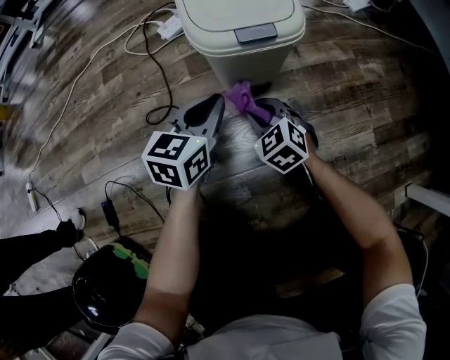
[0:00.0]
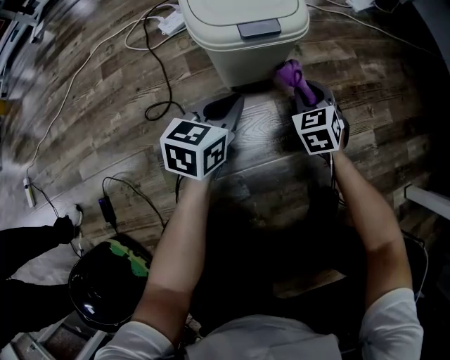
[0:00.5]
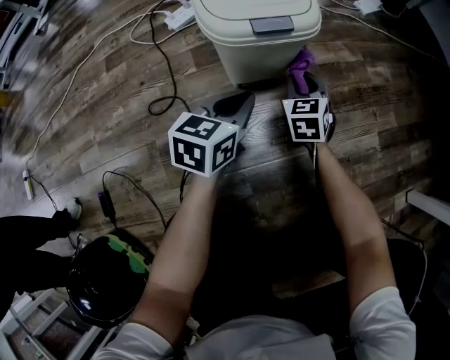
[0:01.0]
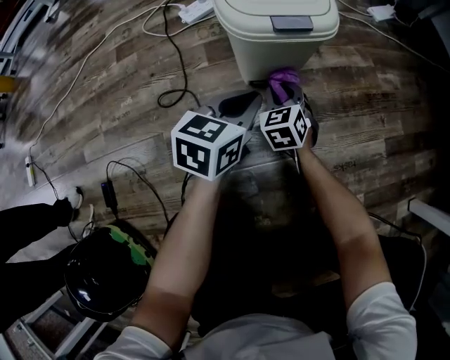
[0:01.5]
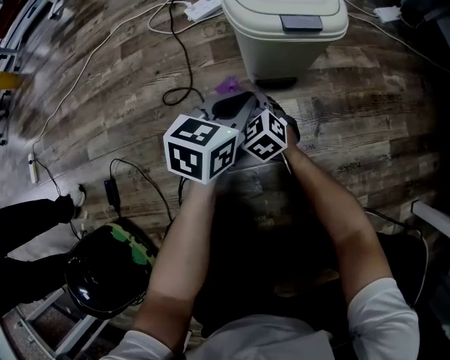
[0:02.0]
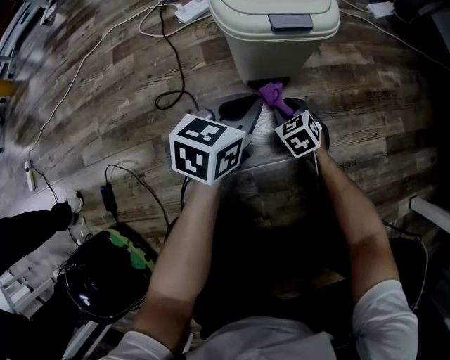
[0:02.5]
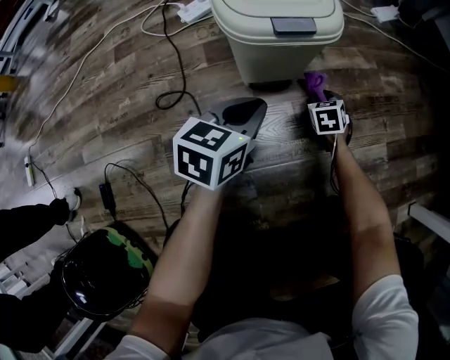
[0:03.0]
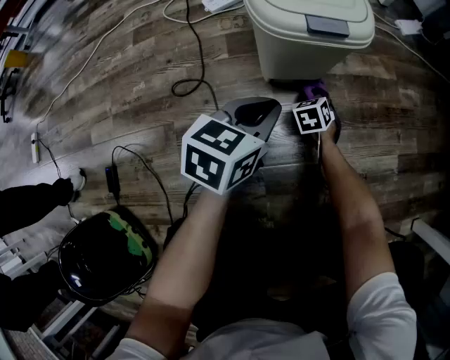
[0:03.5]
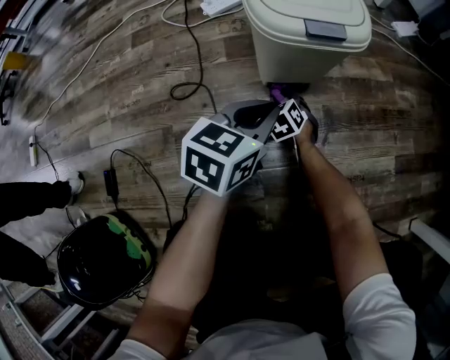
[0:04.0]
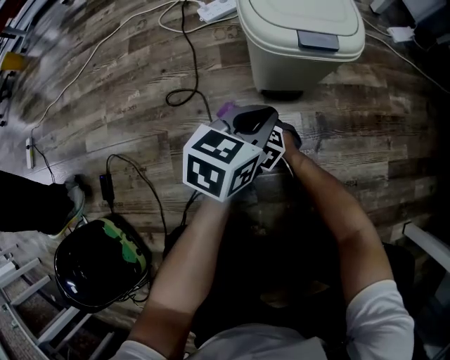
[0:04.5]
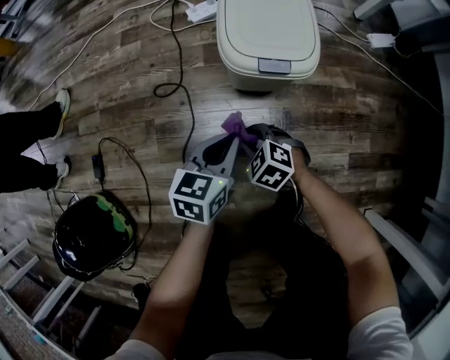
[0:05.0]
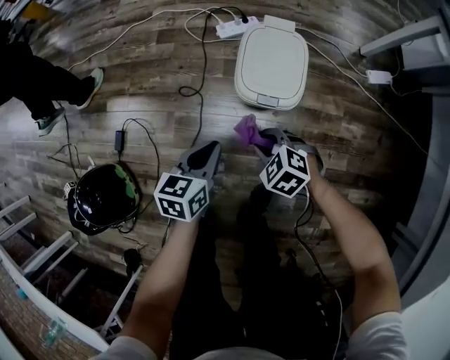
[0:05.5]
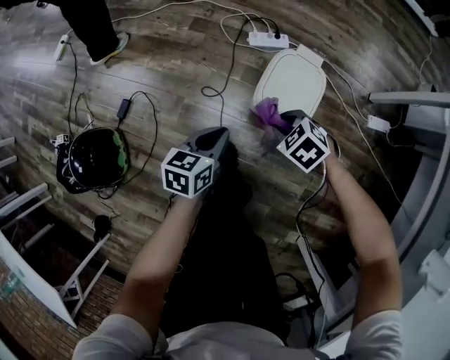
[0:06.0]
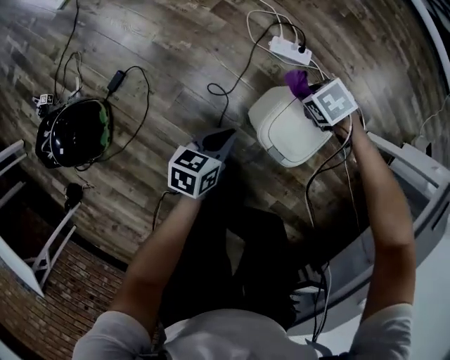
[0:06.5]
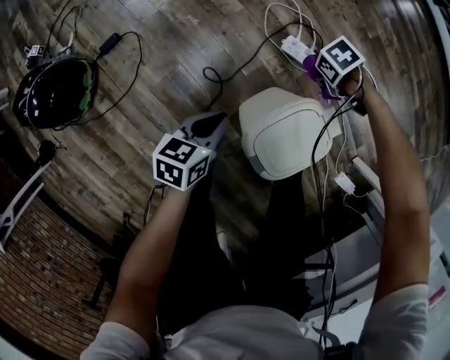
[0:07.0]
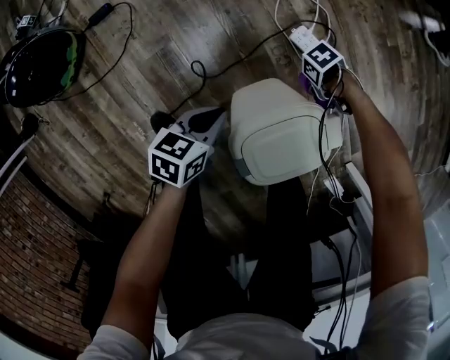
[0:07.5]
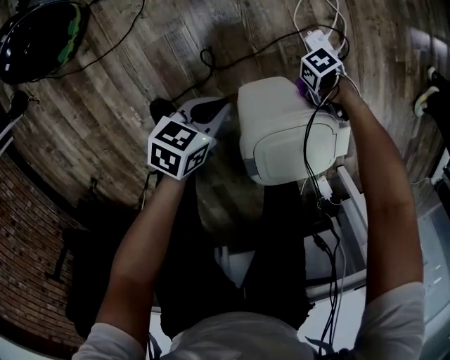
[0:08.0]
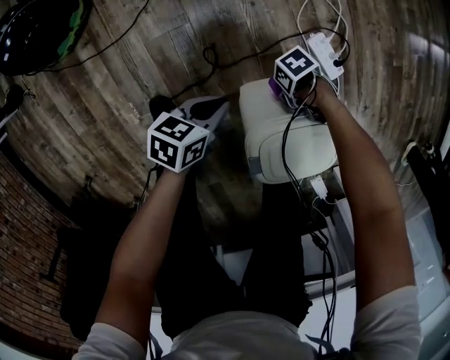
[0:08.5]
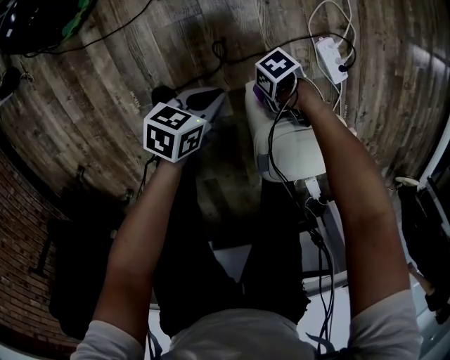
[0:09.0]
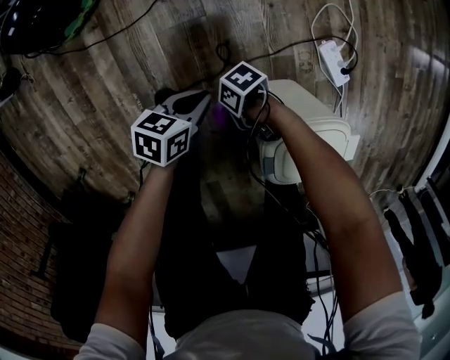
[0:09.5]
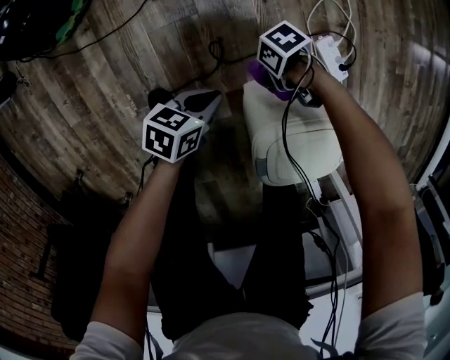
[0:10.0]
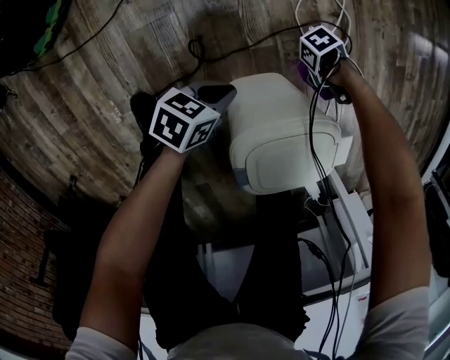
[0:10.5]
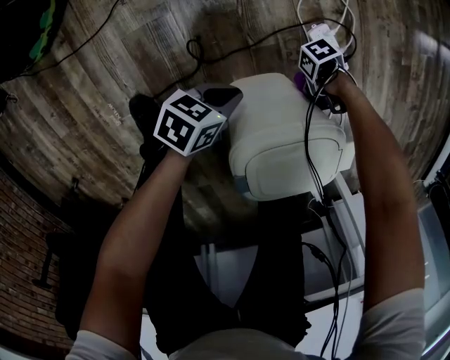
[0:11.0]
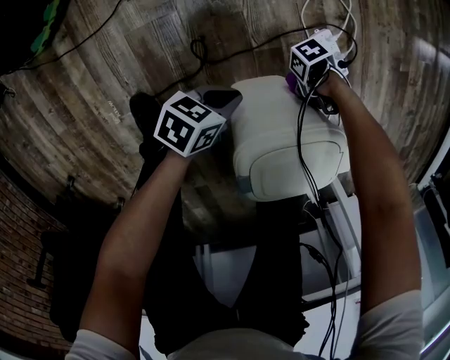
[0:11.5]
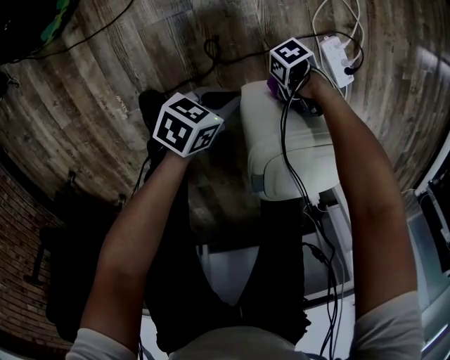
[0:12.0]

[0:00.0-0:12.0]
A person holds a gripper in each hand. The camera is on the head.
0:04.0 to 0:06.0: The left gripper travels upward by about 25 cm, and changes its angle by some 40 degrees.
0:06.0 to 0:08.0: The left gripper is displaced downward by some 15 cm, and rotates roughly 40 degrees.

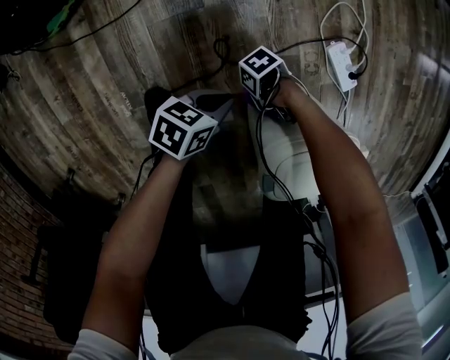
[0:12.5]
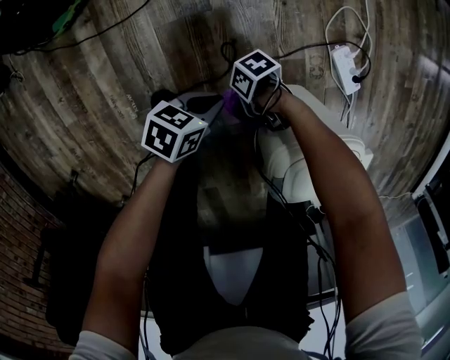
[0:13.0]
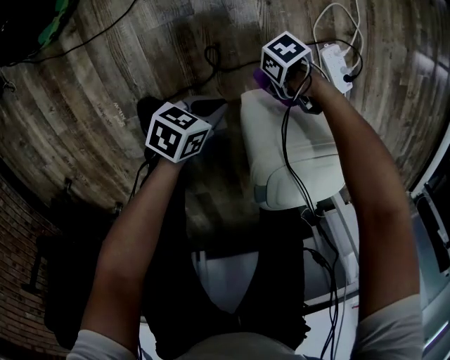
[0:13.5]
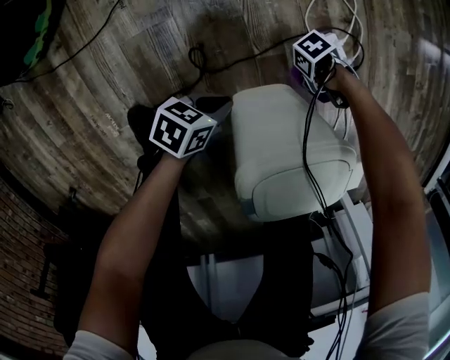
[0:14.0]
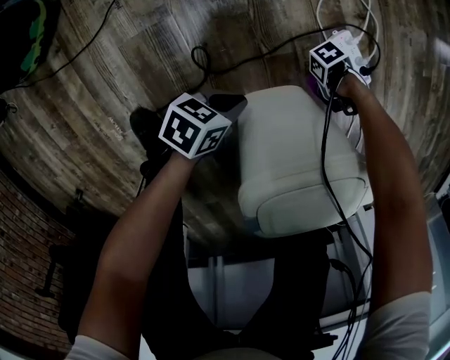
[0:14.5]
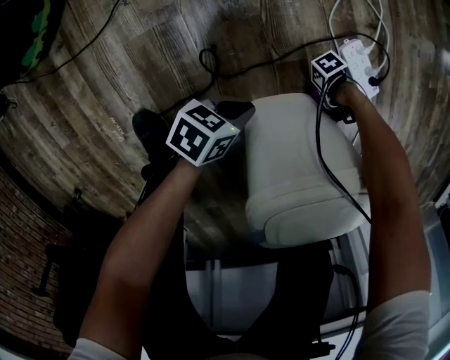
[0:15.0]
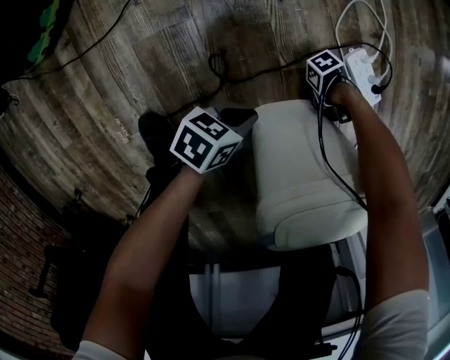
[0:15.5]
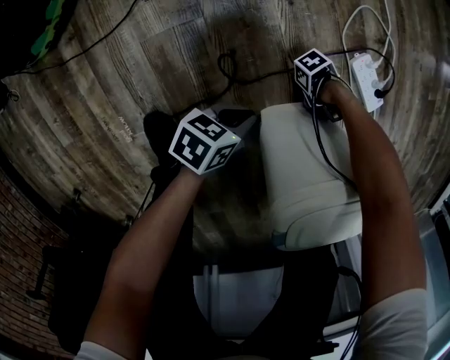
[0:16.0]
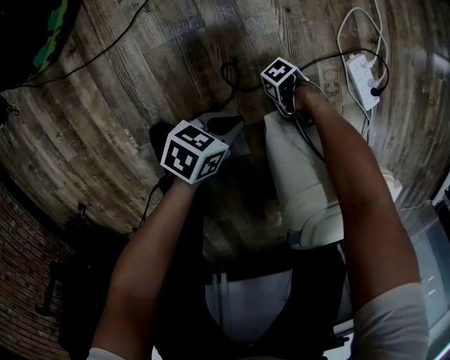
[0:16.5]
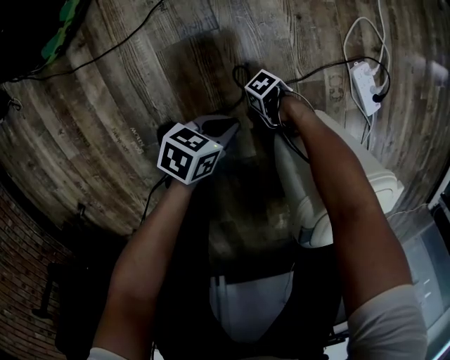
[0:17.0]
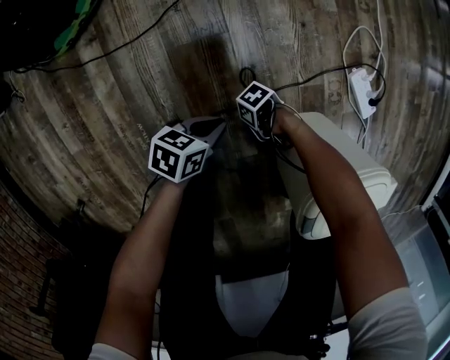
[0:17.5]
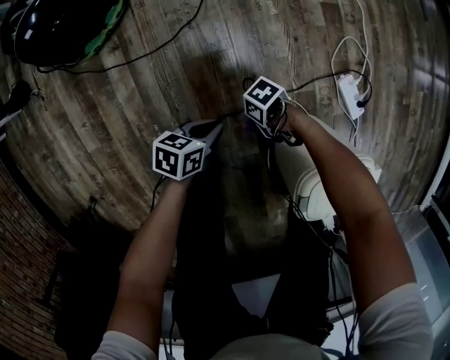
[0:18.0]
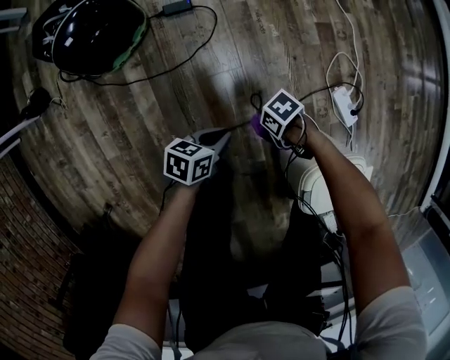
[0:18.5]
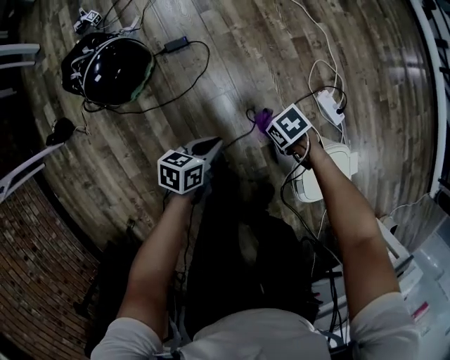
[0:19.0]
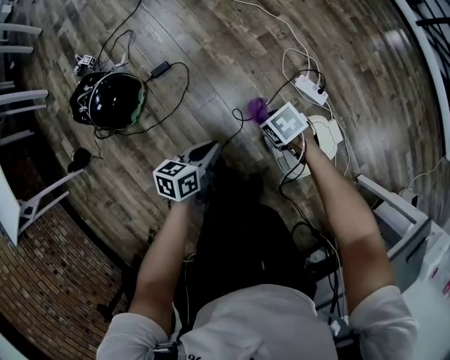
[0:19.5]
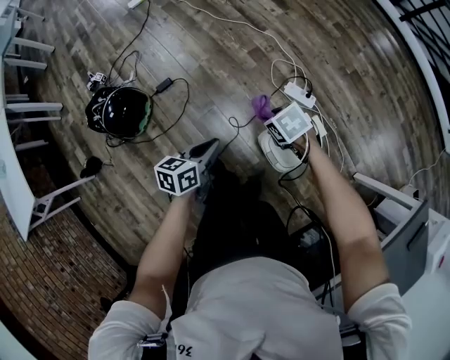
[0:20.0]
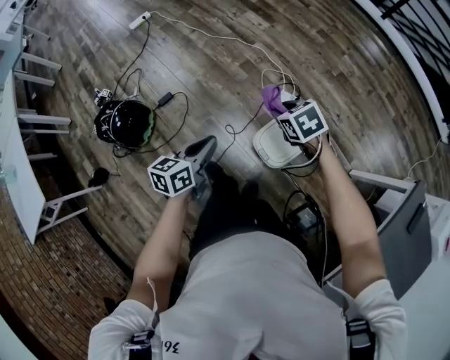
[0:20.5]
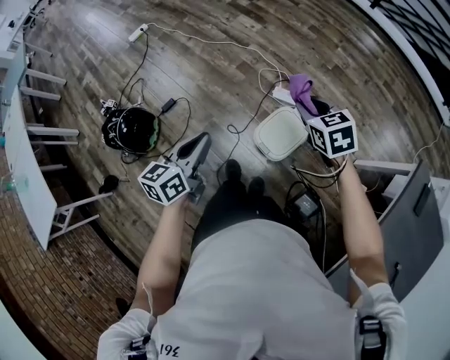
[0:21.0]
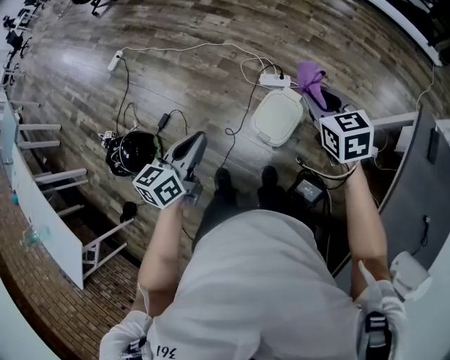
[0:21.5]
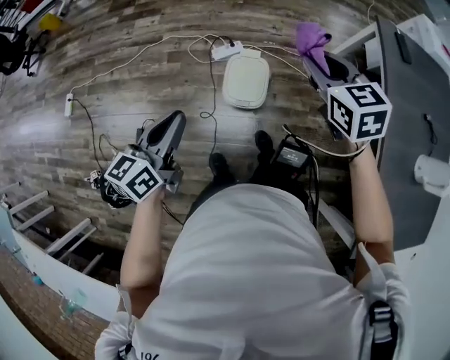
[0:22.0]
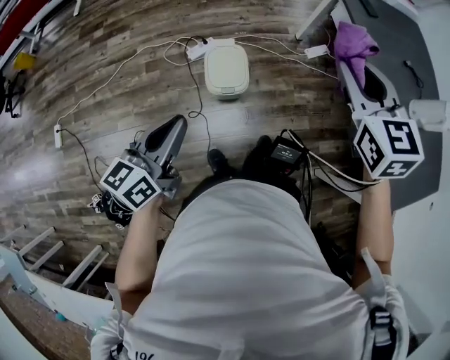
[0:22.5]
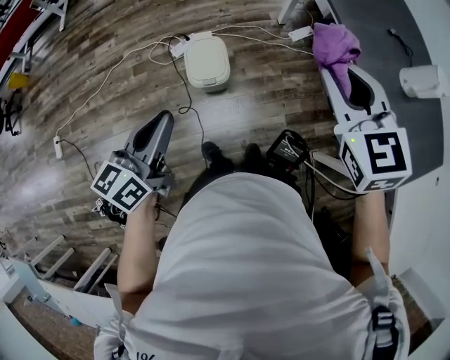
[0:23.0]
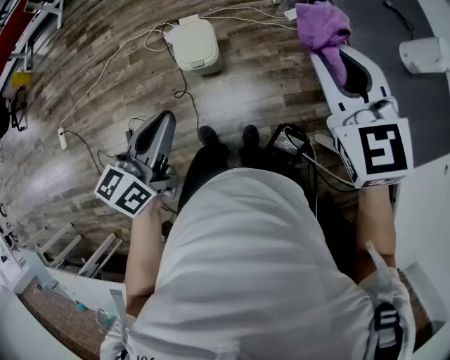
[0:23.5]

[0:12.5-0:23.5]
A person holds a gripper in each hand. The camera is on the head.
0:12.5 to 0:14.5: The left gripper changes place by about 15 cm.
0:16.0 to 0:18.0: The left gripper changes place by roughly 20 cm.
0:18.0 to 0:20.0: The left gripper goes roughly 40 cm upward, and changes its angle by about 20 degrees.
0:20.0 to 0:21.5: The left gripper is displaced upward by some 20 cm, and swivels roughly 20 degrees.
0:21.5 to 0:23.5: The left gripper ends up some 20 cm from where it was, and changes its angle by about 40 degrees.

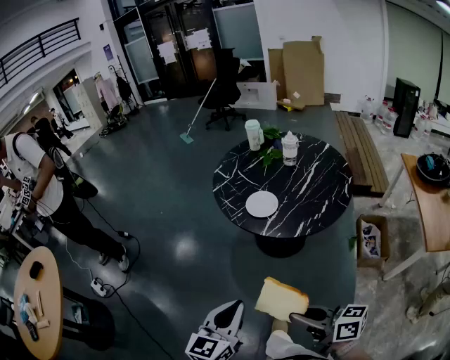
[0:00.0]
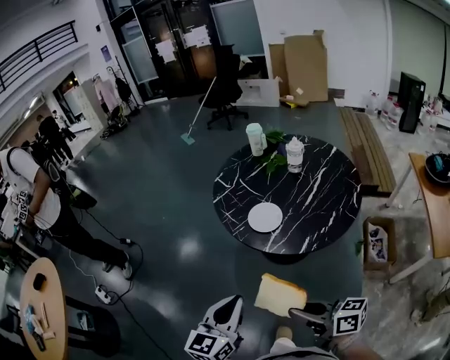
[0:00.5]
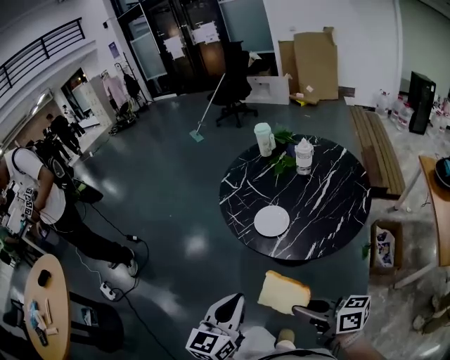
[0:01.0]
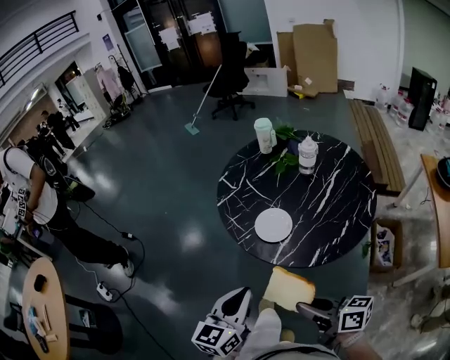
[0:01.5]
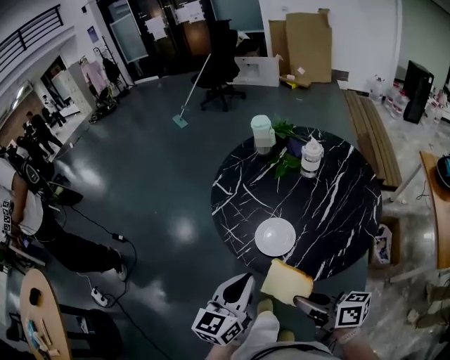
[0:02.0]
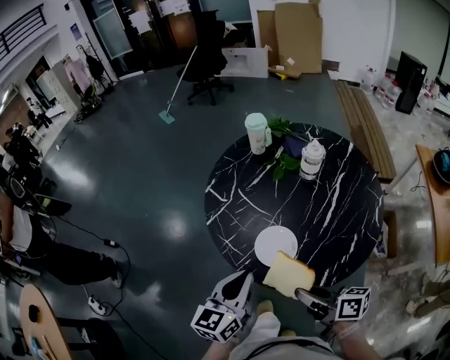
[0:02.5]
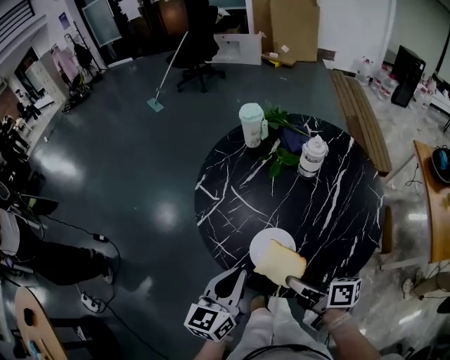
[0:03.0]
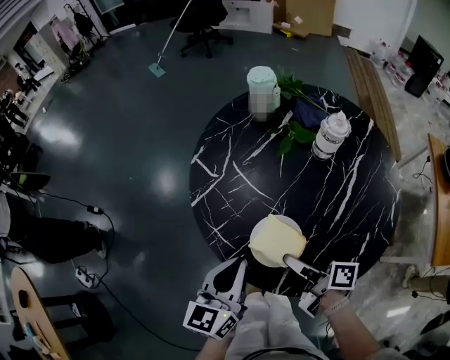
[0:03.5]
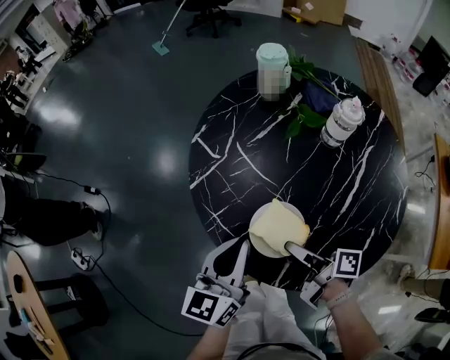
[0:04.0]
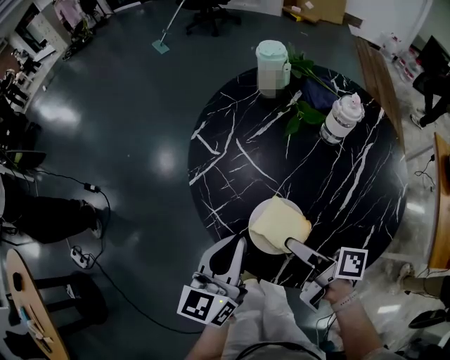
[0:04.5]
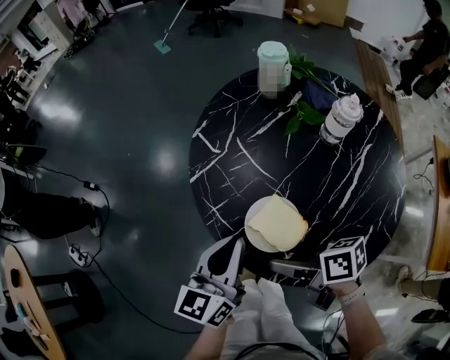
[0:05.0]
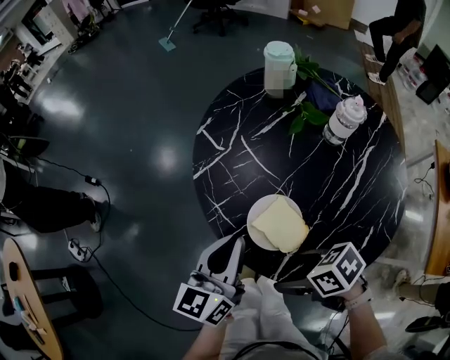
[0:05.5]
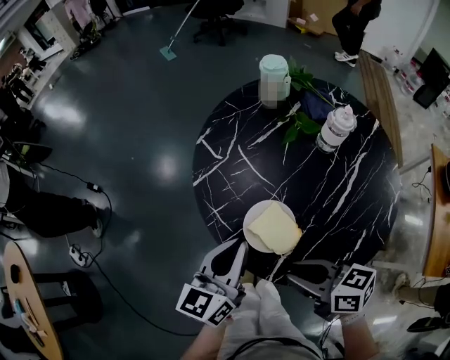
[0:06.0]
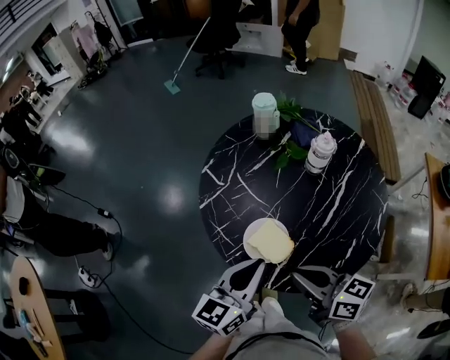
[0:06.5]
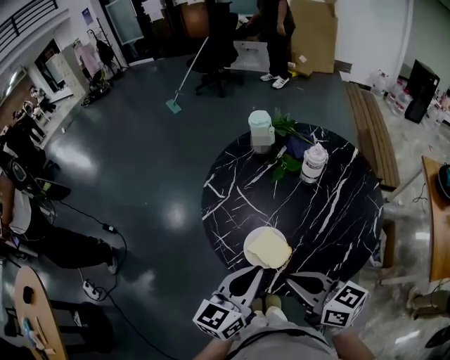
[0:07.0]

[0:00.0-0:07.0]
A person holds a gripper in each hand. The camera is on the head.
0:00.0 to 0:02.0: Both grippers travel together forward, about 30 cm.
0:02.0 to 0:03.5: Both grippers move forward and downward, about 20 cm. The right gripper rotates approximately 30 degrees.
0:03.5 to 0:05.0: The right gripper swivels some 30 degrees, and opens its fingers.
0:05.0 to 0:07.0: The left gripper changes place by about 10 cm; the right gripper travels upward by about 15 cm, rotates some 40 degrees, and closes up.
